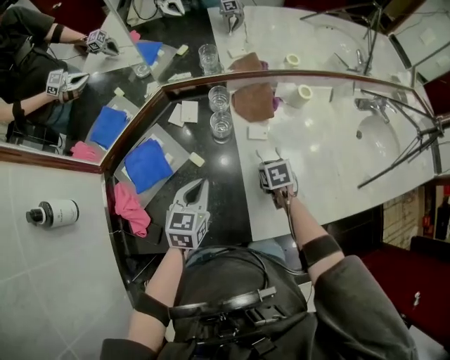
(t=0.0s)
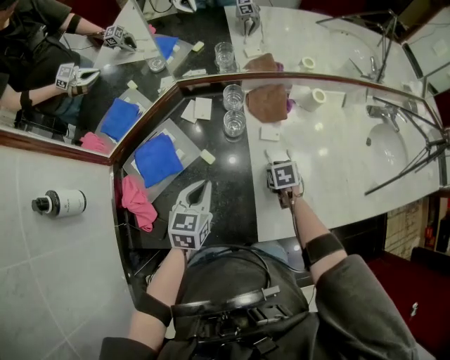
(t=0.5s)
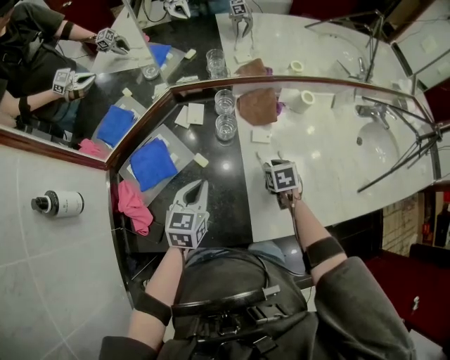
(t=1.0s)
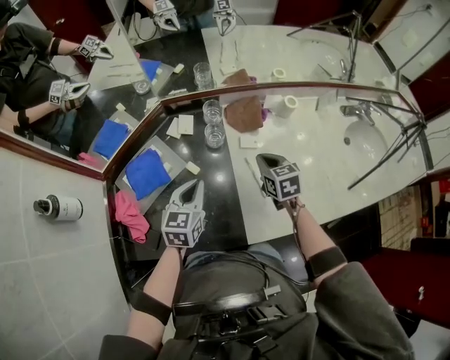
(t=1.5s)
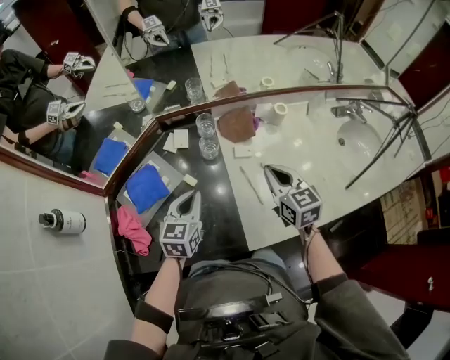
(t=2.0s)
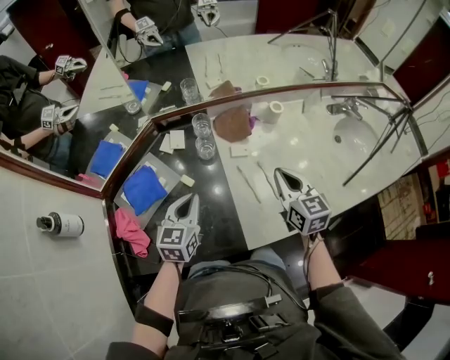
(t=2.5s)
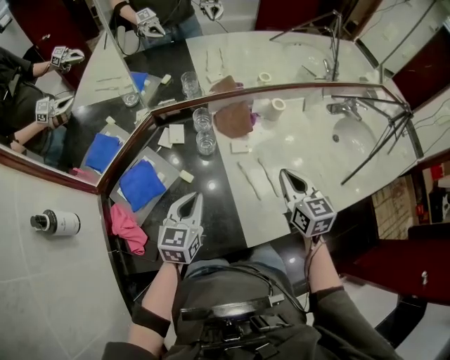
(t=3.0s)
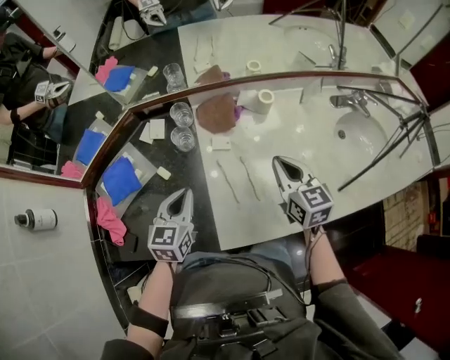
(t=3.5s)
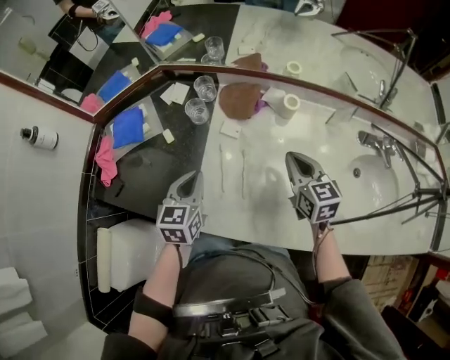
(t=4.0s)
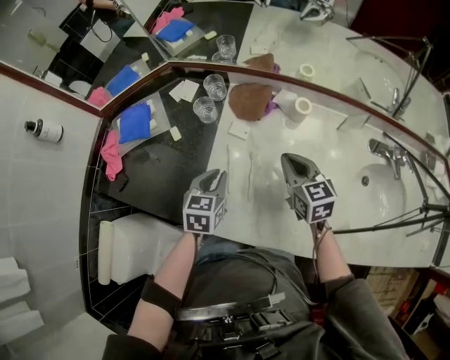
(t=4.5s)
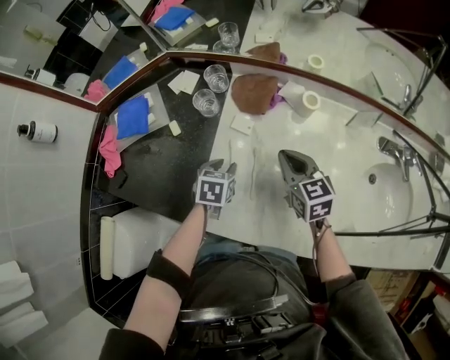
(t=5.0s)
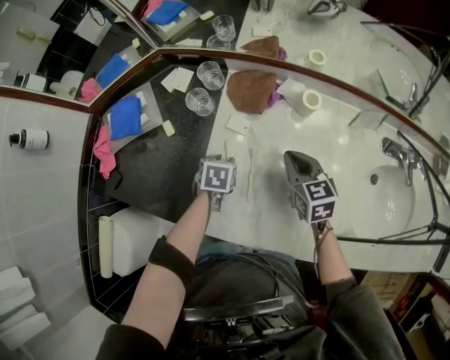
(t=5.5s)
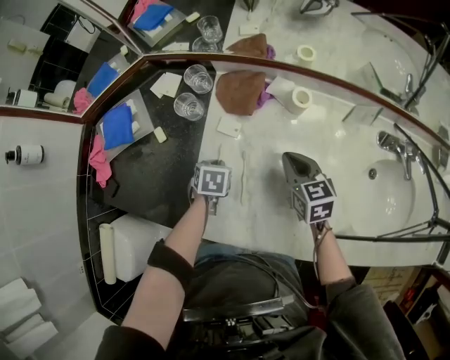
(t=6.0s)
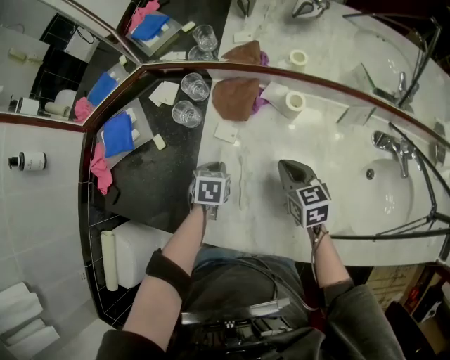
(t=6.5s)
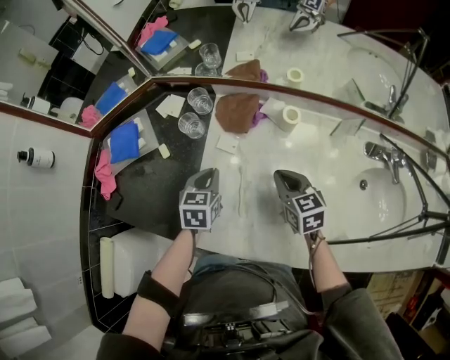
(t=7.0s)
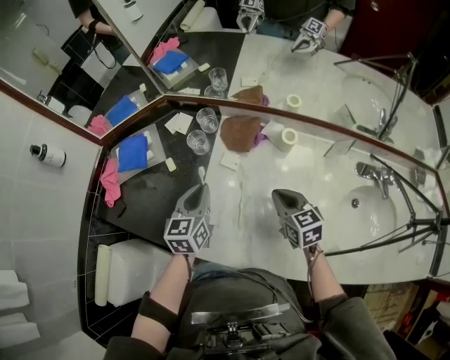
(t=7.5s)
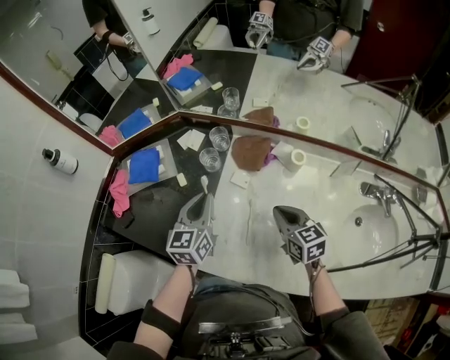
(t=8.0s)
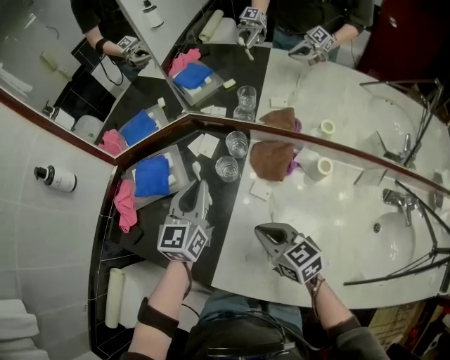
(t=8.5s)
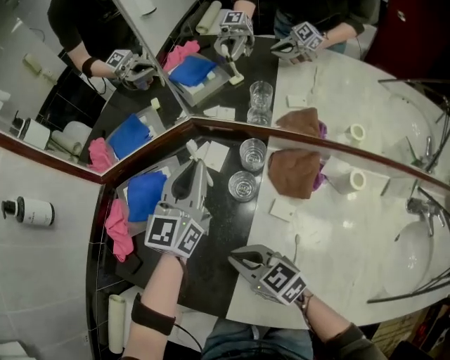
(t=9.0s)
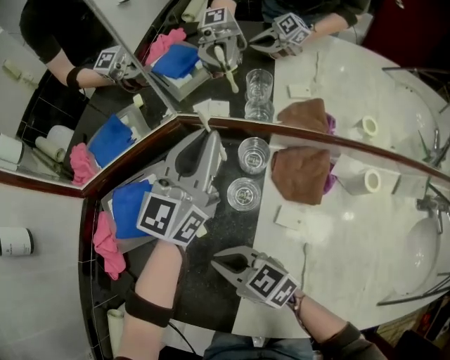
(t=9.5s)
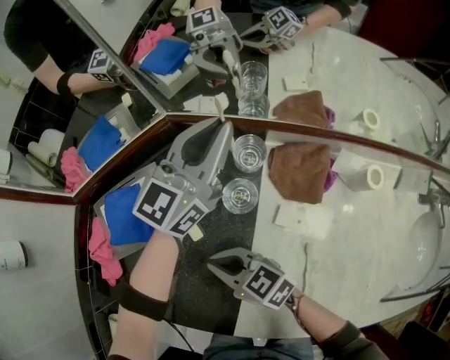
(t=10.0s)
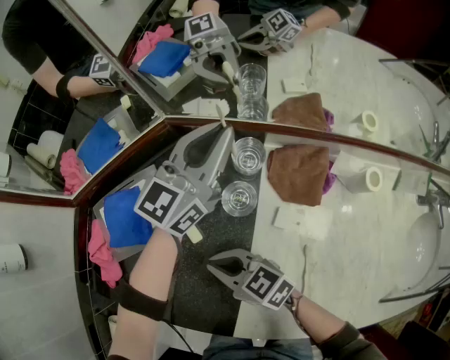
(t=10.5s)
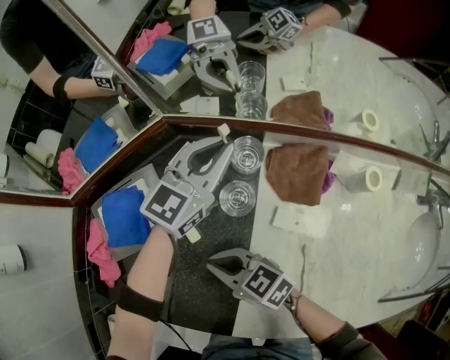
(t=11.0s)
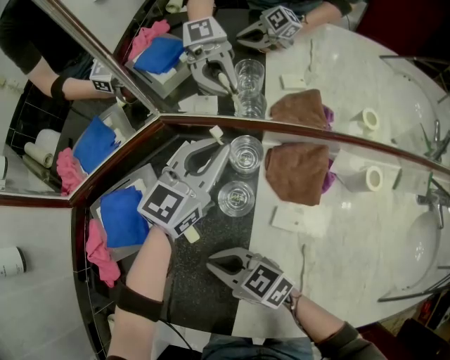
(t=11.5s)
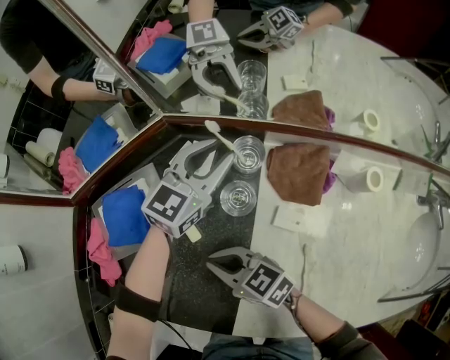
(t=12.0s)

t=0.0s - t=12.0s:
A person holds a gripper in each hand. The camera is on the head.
t=0.0s - t=2.0s: The right gripper shifts about 25 cm upward, and points its fingers about 40 degrees further upward.
t=2.0s - t=4.0s: The left gripper ends up about 15 cm from where it was, and changes its angle by about 30 degrees. Meanwhile the right gripper shifts by approximately 20 cm.
t=4.0s - t=6.0s: The left gripper moves downward, approximately 20 cm, angles its fingers downward, by roughly 40 degrees, and opens and closes again; the right gripper goes about 10 cm downward.
t=6.0s - t=8.0s: The left gripper is displaced upward by some 25 cm, and tips its fingers upward by about 50 degrees; the right gripper shifts approximately 10 cm upward.
t=8.0s - t=10.0s: The right gripper is displaced to the left, forward and downward by roughly 35 cm, and turns by some 30 degrees. Meanwhile the left gripper goes about 30 cm forward, and turns by some 40 degrees.
t=10.0s - t=12.0s: The left gripper moves downward, some 10 cm, rotates approximately 20 degrees, and opens its fingers.

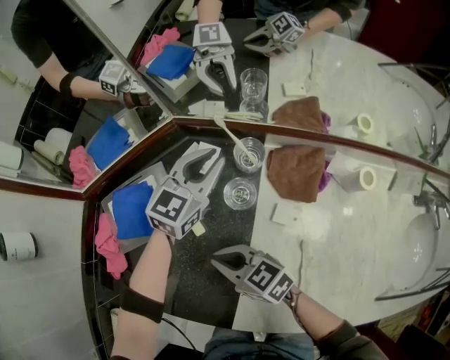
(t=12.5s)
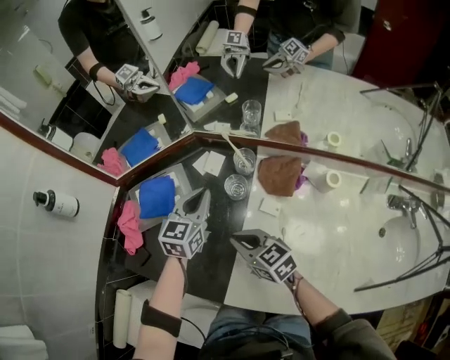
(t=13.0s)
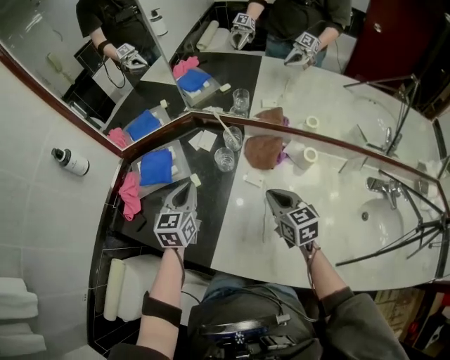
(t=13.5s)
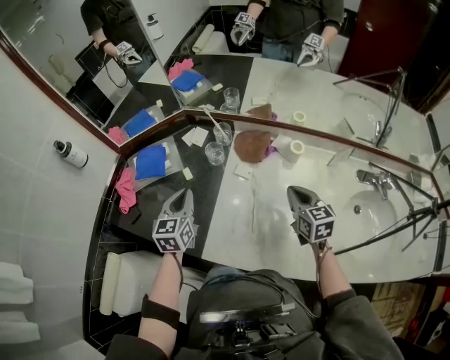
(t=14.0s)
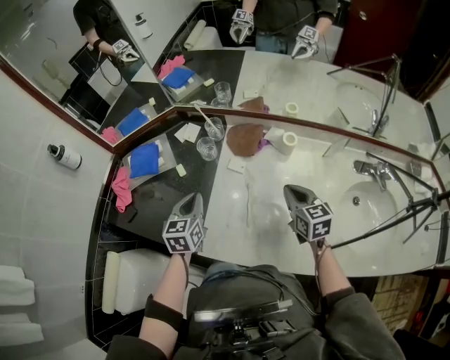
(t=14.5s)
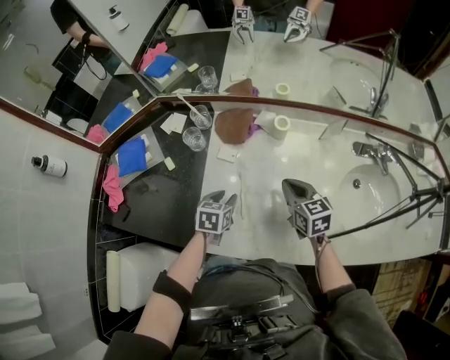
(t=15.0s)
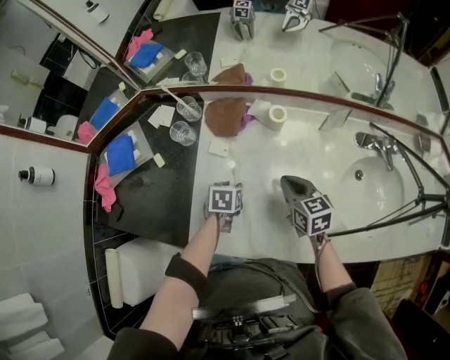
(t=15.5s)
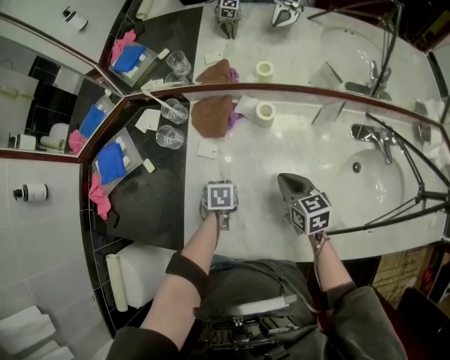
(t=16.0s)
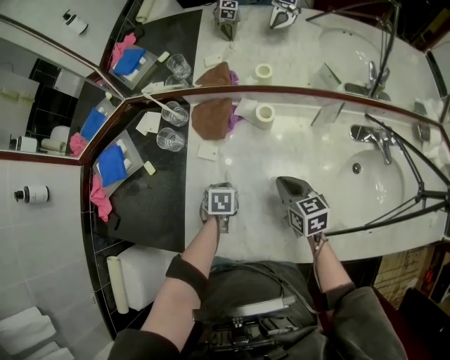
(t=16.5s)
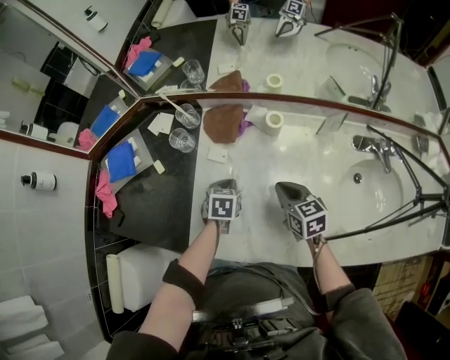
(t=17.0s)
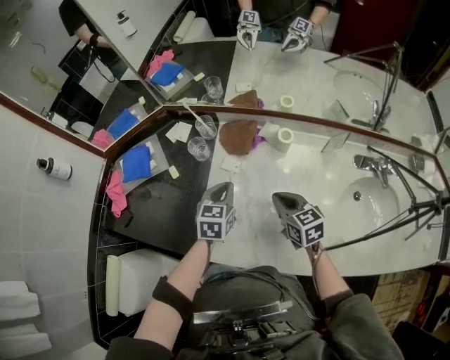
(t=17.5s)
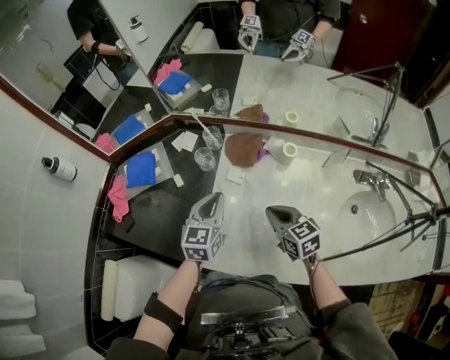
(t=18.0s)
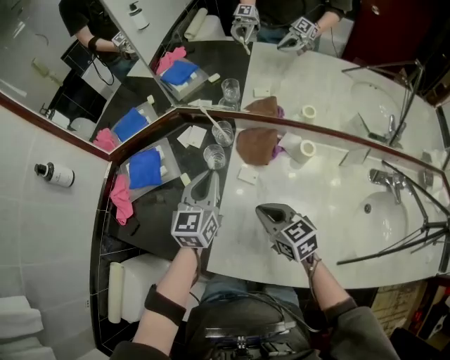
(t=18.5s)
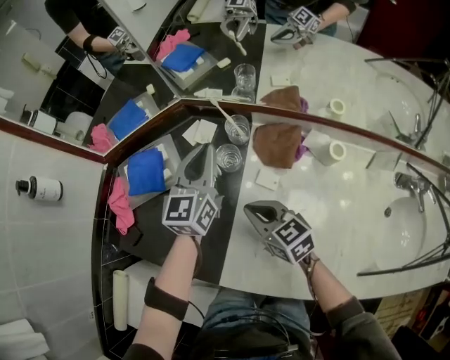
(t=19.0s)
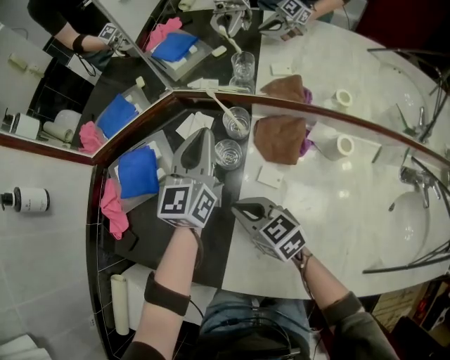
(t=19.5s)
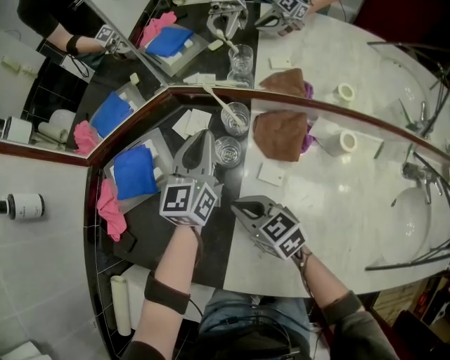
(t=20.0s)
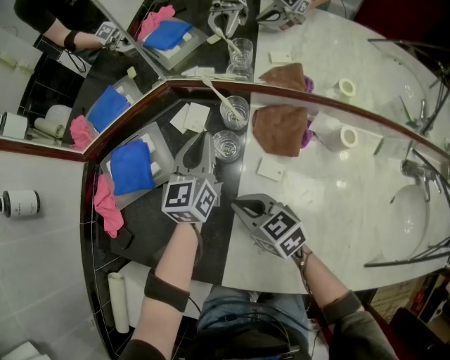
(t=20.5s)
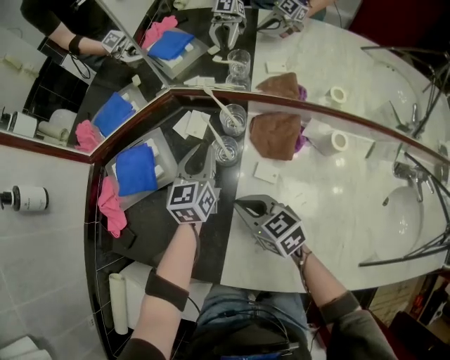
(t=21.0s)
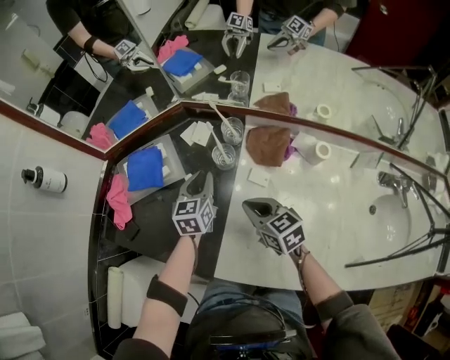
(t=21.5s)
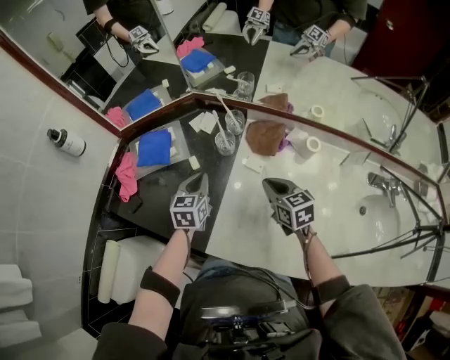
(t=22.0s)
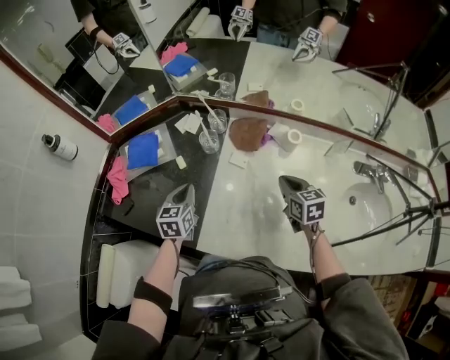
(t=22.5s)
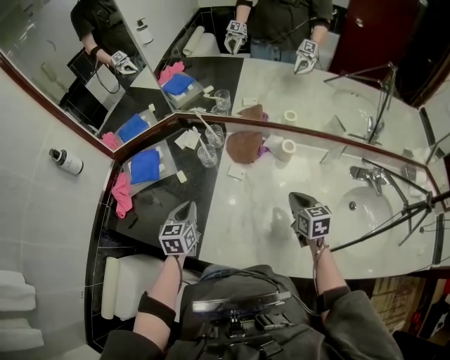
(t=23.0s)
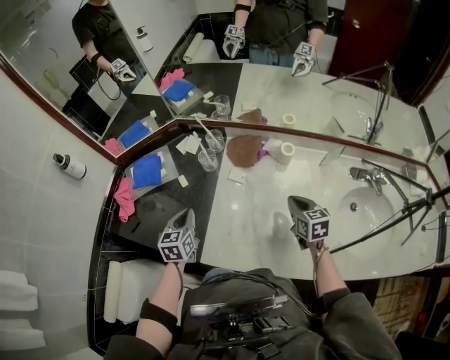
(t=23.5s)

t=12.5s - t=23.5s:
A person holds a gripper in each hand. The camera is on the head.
t=12.5s - t=14.5s: The left gripper travels backward by some 30 cm, and turns by roughly 40 degrees, while the right gripper is displaced to the right and backward by some 40 cm, and turns by some 40 degrees.
t=14.5s - t=16.0s: The left gripper moves downward, some 20 cm, points its fingers approximately 40 degrees further downward, and opens, then closes once more, while the right gripper goes roughly 10 cm downward.
t=16.0s - t=18.0s: The left gripper heads upward, covering some 25 cm, and tips its fingers upward by about 50 degrees. The right gripper shifts by roughly 15 cm.
t=18.0s - t=20.0s: The left gripper moves forward, approximately 25 cm; the right gripper shifts some 25 cm to the left, forward and downward.
t=20.0s - t=21.5s: The right gripper moves approximately 10 cm. Meanwhile the left gripper shifts about 10 cm backward, downward and to the left, and swivels approximately 20 degrees.
t=21.5s - t=23.5s: The right gripper moves to the right and backward, roughly 25 cm, and rotates approximately 30 degrees, while the left gripper travels backward by about 15 cm.

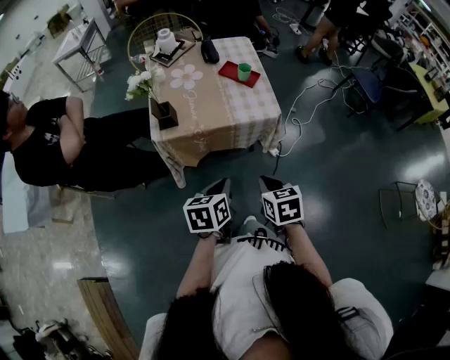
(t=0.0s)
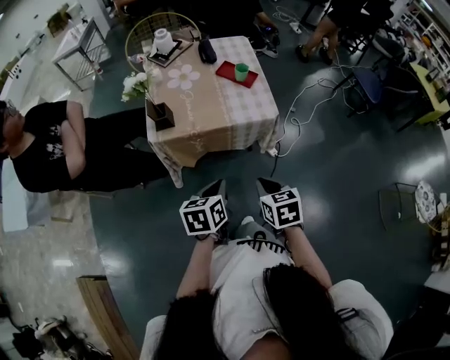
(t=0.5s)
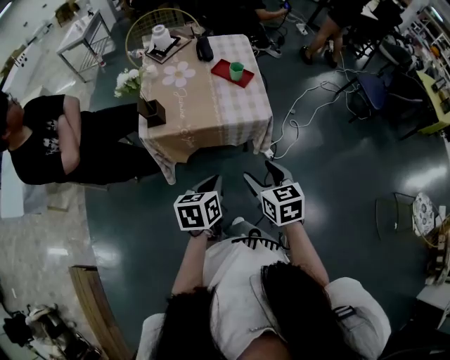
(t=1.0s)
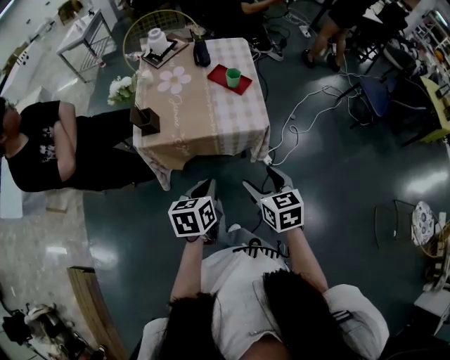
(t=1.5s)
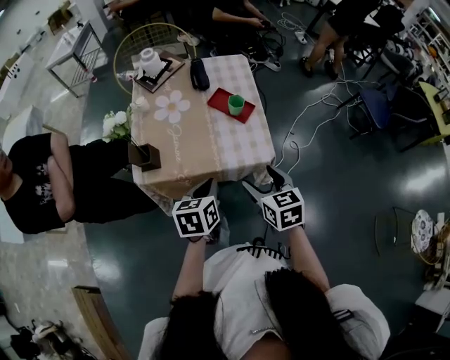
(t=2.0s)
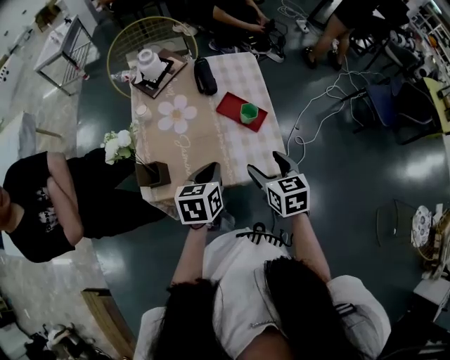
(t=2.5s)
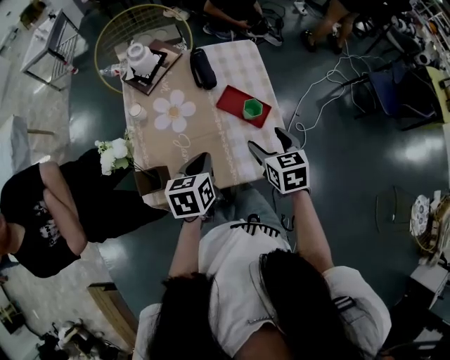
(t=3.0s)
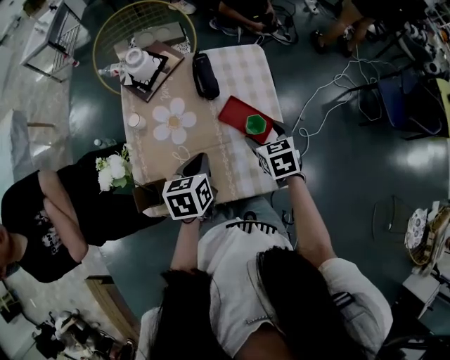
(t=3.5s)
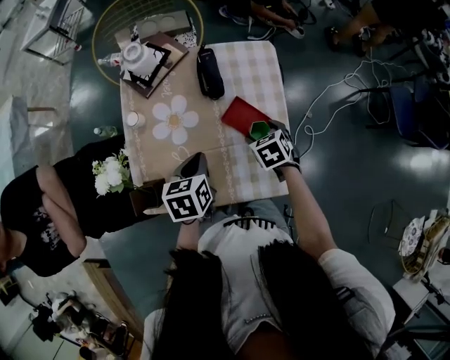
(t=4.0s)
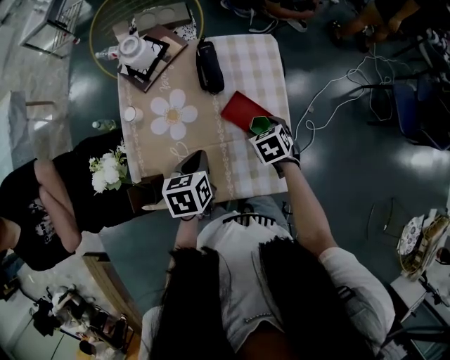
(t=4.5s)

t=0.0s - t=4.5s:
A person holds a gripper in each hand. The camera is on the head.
t=0.0s - t=2.0s: Both grippers move forward, some 20 cm. The right gripper opens its fingers.
t=2.0s - t=4.5s: The right gripper heads forward and downward, covering about 35 cm, and tips its fingers downward by roughly 30 degrees. The left gripper goes some 25 cm forward.
